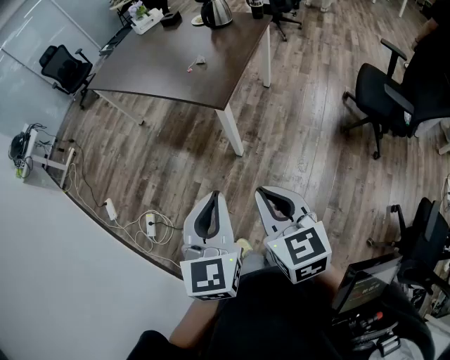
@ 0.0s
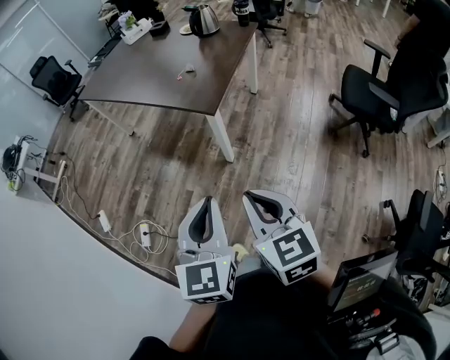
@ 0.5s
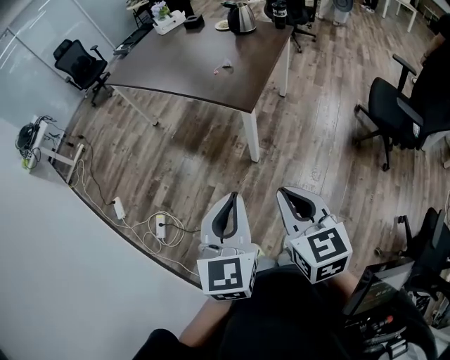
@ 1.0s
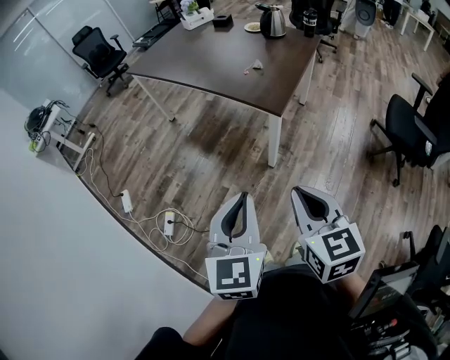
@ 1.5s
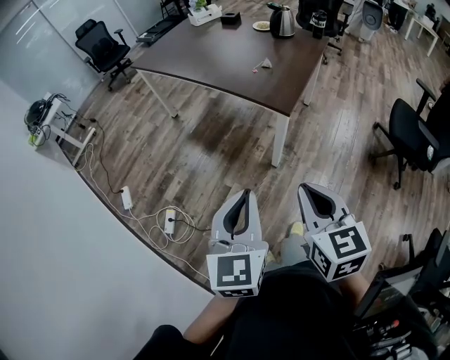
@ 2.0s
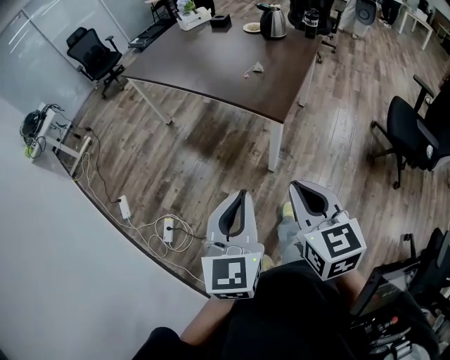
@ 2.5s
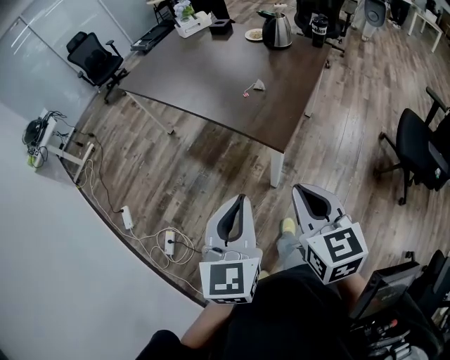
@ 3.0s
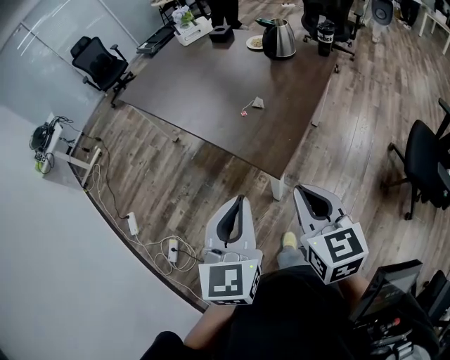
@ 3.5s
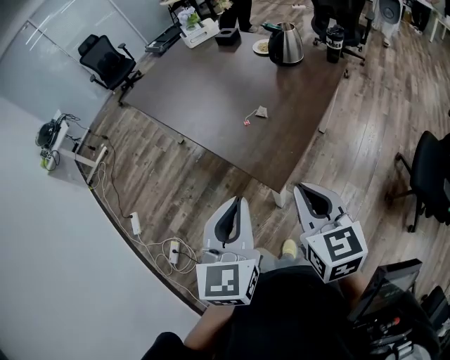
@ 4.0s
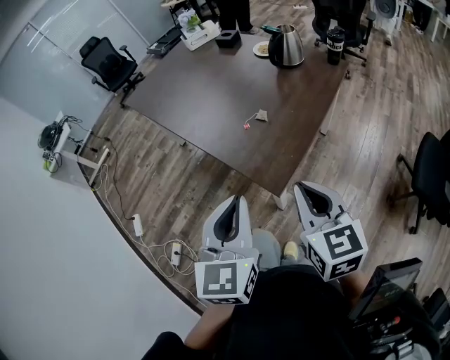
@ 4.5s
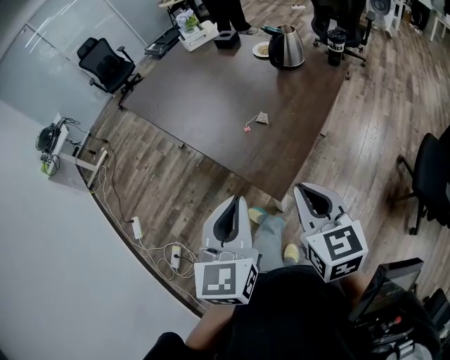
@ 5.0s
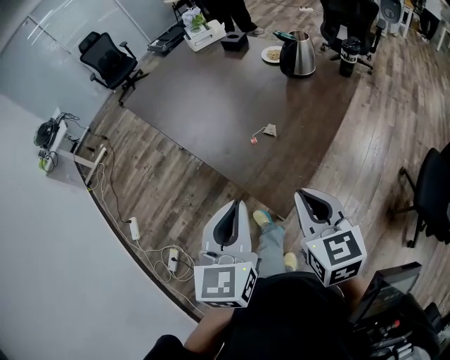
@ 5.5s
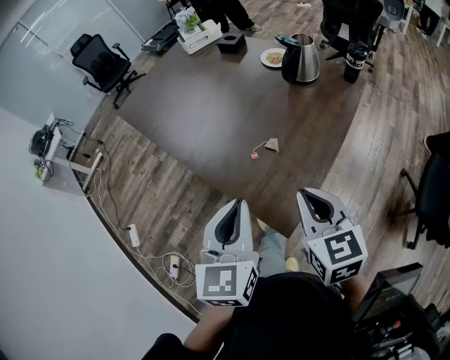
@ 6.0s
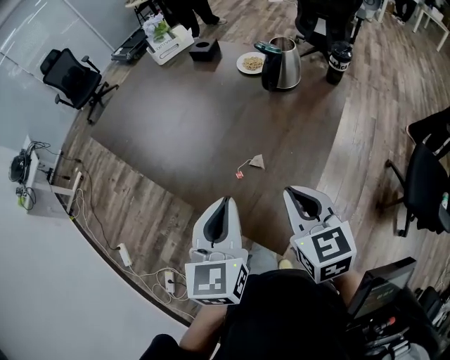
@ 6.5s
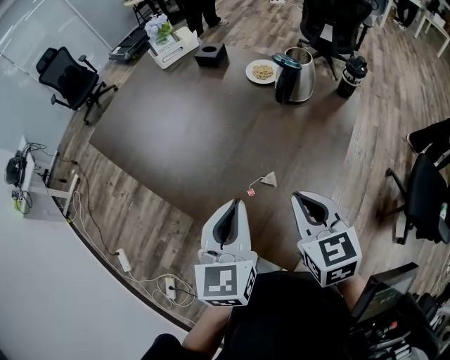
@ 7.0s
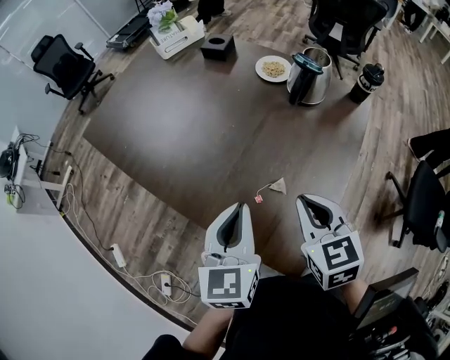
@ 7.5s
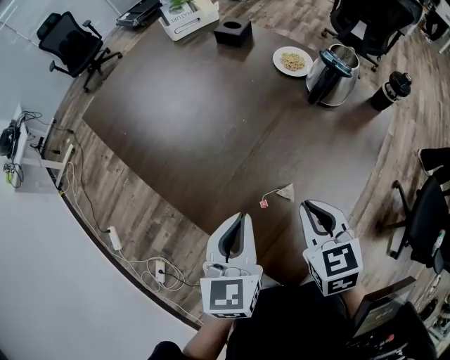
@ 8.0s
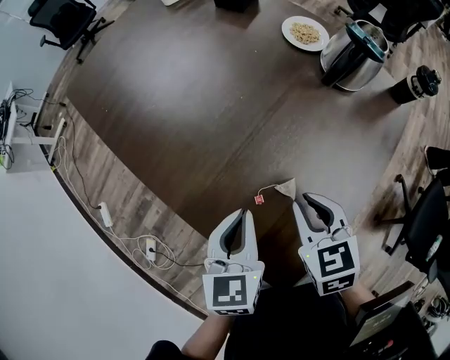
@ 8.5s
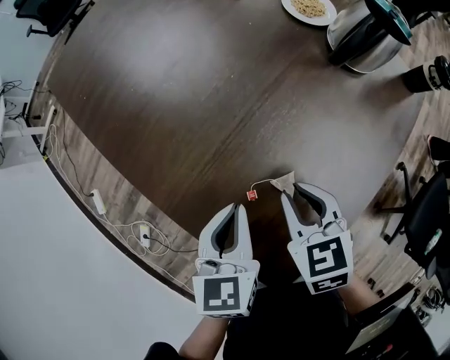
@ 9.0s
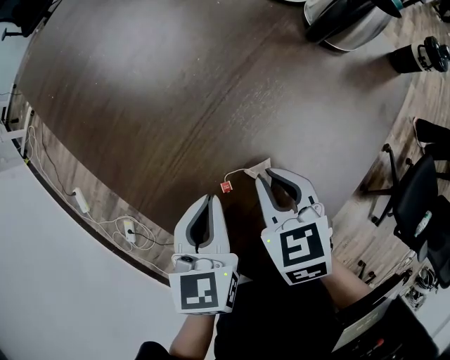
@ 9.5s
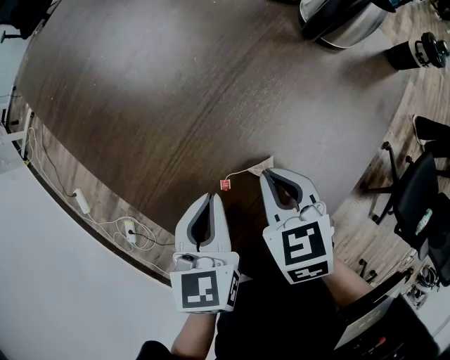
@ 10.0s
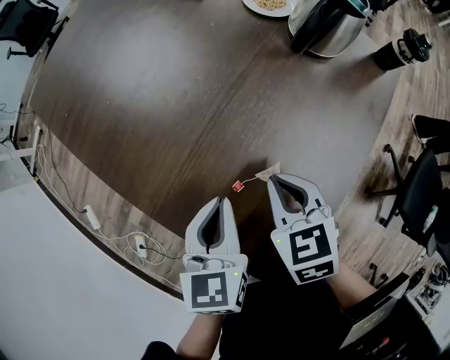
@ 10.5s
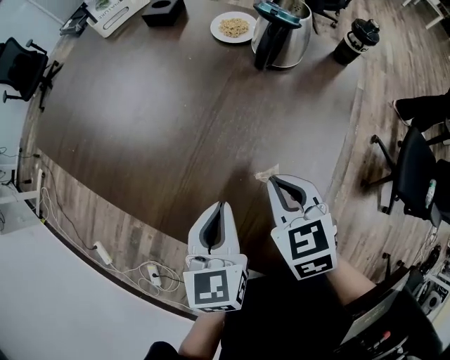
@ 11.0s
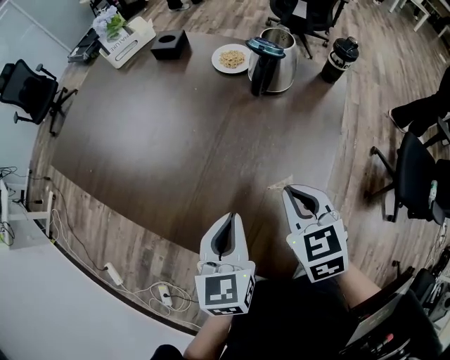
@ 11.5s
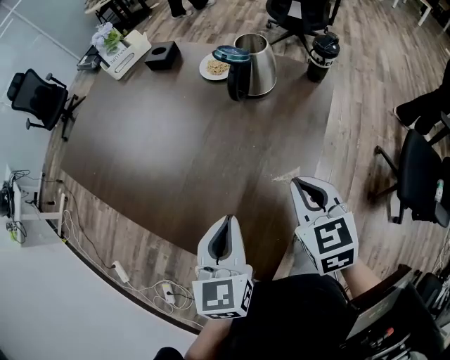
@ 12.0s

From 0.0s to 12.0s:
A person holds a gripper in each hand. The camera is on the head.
From 0.0s to 2.0s: The two grippers go some 15 cm to the left.
From 2.0s to 4.0s: The two grippers go some 35 cm forward and to the right.
From 4.0s to 6.0s: Both grippers travel together forward, some 15 cm.
From 6.0s to 8.0s: The grippers both shift forward and downward by roughly 20 cm.
From 8.0s to 10.0s: Both grippers travel together downward, some 15 cm.
From 10.0s to 12.0s: Both grippers move upward and to the right, approximately 20 cm. The left gripper swivels some 20 degrees. The right gripper rotates about 20 degrees.

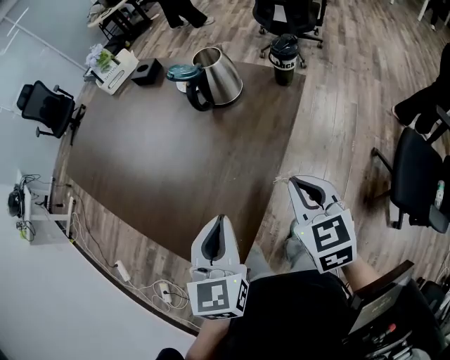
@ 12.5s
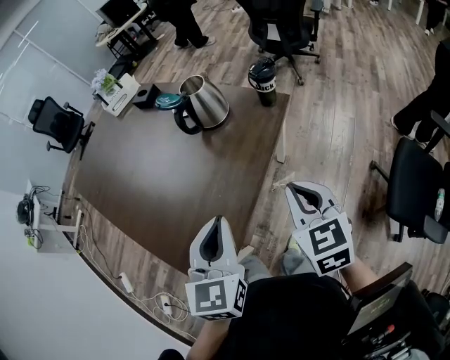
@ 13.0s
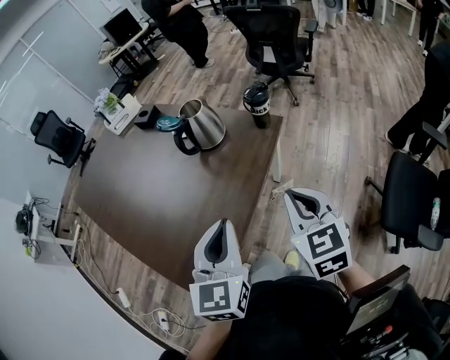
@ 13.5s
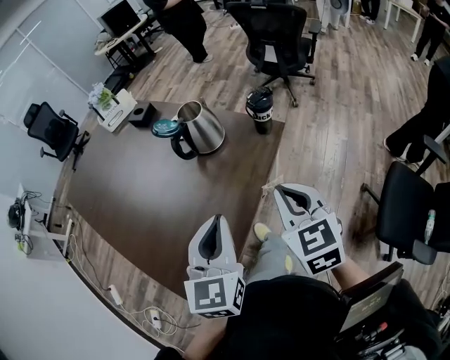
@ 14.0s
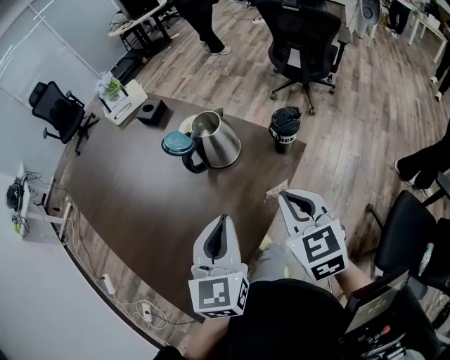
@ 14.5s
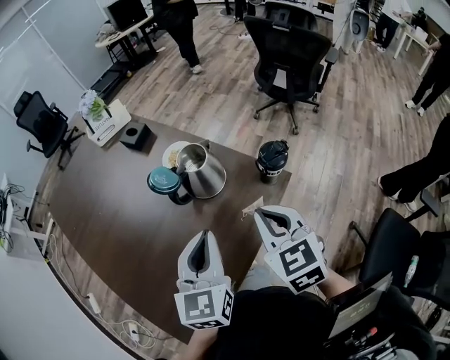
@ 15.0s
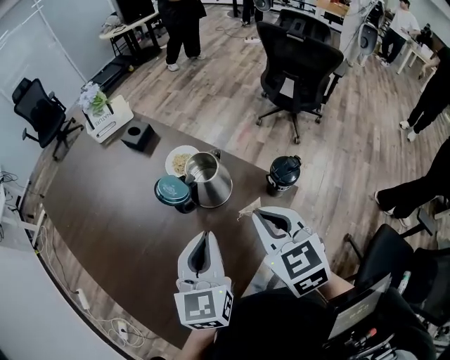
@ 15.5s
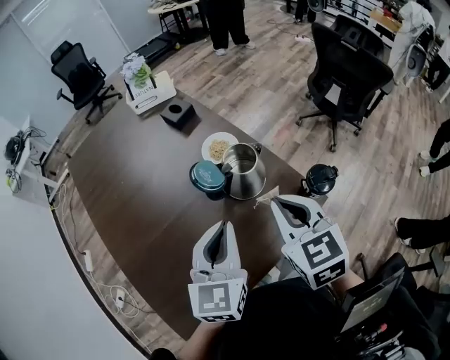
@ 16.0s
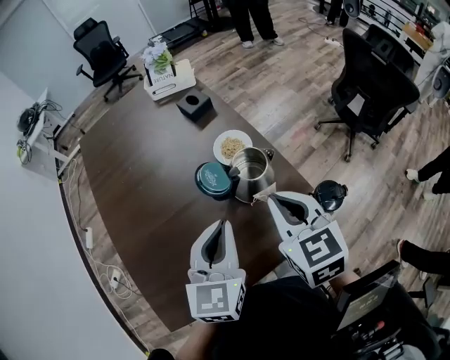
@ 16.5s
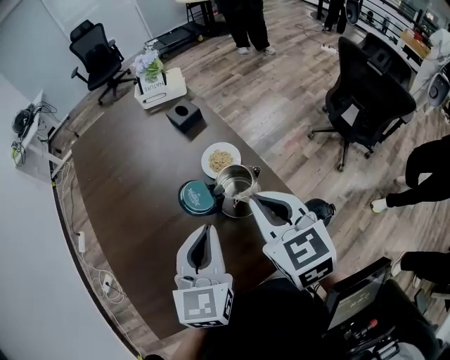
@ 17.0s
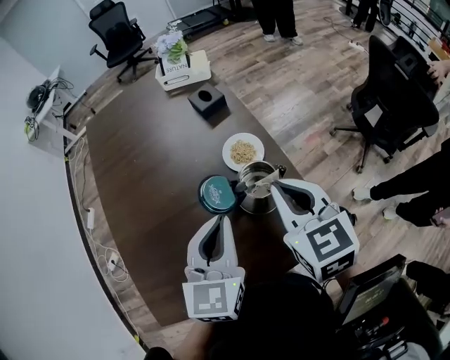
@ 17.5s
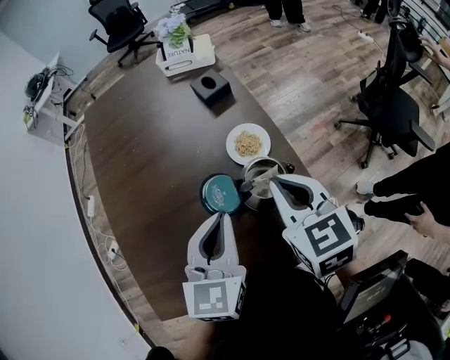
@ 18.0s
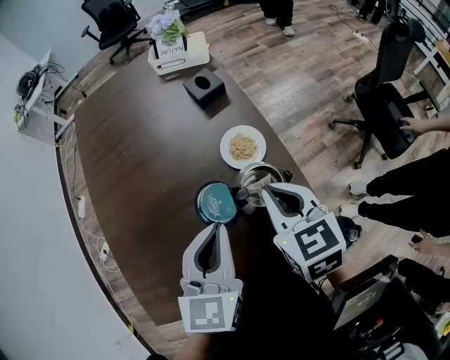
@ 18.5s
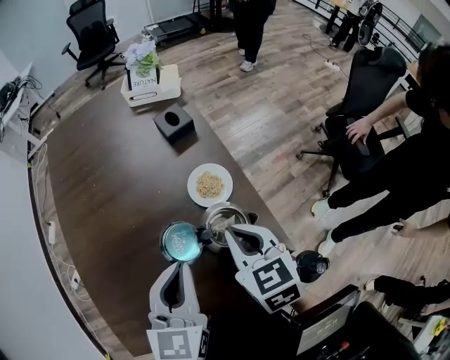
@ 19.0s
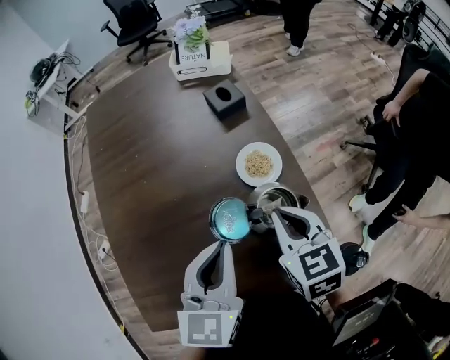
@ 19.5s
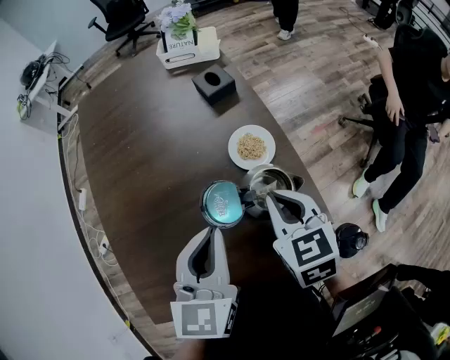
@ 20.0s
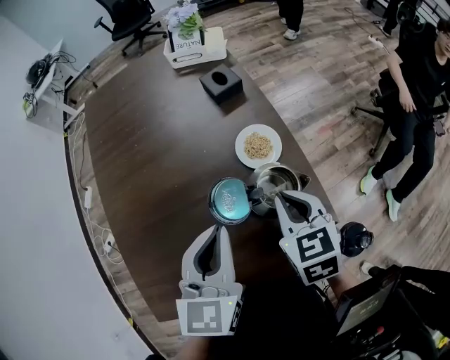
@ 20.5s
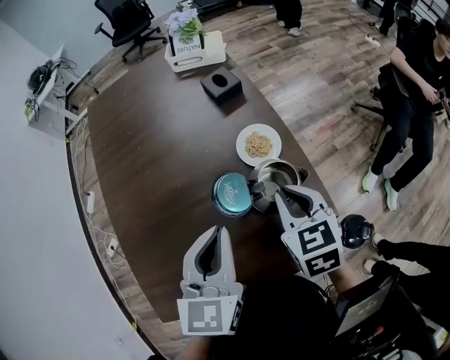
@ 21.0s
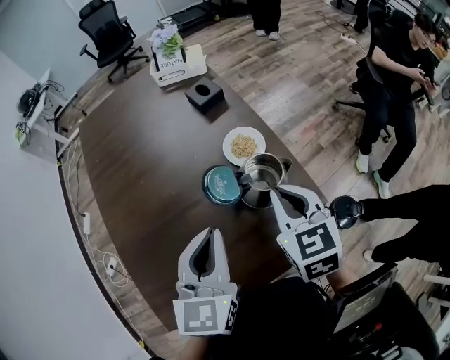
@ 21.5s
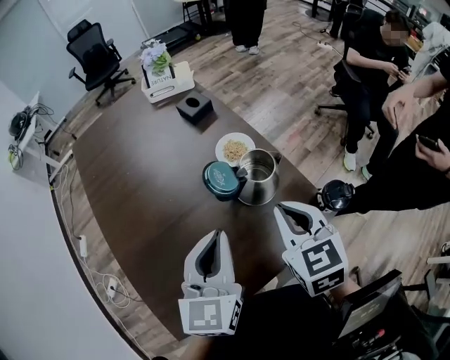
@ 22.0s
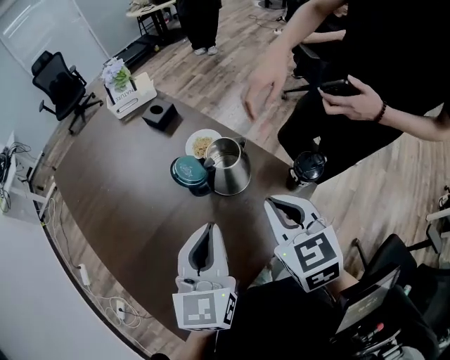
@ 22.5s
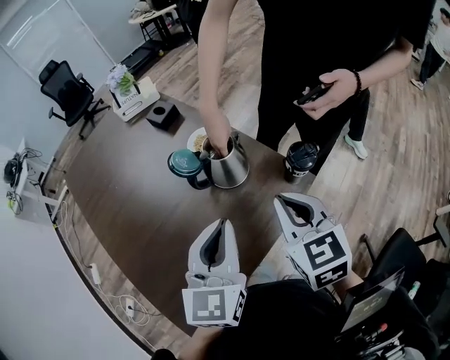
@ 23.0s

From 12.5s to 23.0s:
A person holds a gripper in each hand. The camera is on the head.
From 12.5s to 14.5s: The two grippers go approximately 20 cm forward and to the right.
From 14.5s to 16.5s: The grippers both shift forward by approximately 15 cm. The left gripper rotates about 20 degrees; the right gripper changes its angle by roughly 30 degrees.
From 16.5s to 19.0s: The left gripper moves forward, about 10 cm; the right gripper heads forward and downward, covering some 15 cm.
From 19.0s to 21.0s: There are only small adjustments of the grippers.
From 21.0s to 23.0s: The right gripper moves some 20 cm, and rotates some 30 degrees; the left gripper ends up approximately 15 cm from where it was, and turns by roughly 30 degrees.

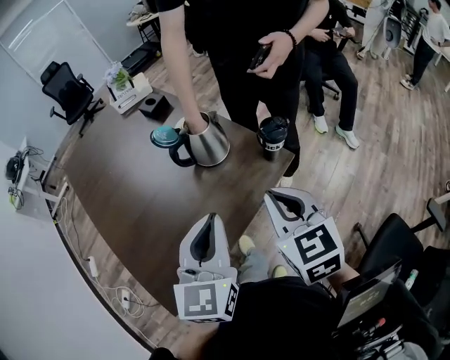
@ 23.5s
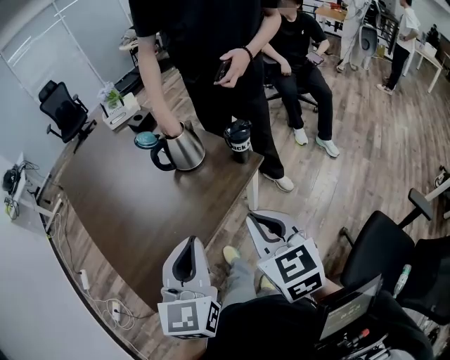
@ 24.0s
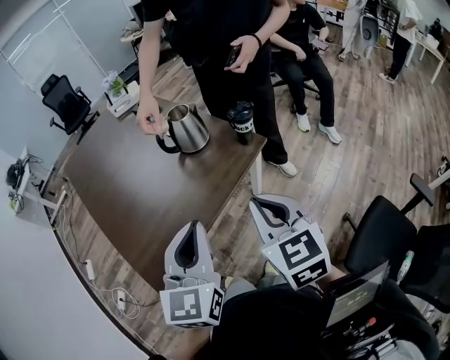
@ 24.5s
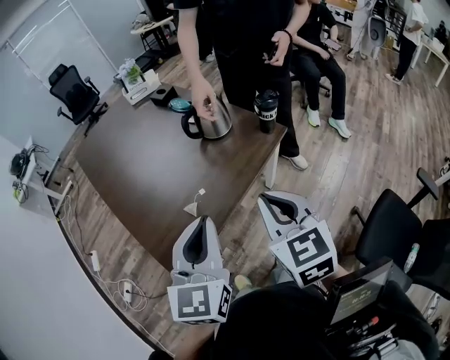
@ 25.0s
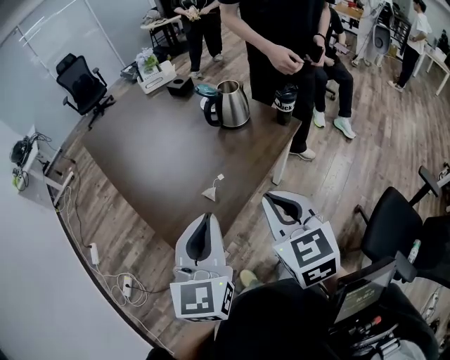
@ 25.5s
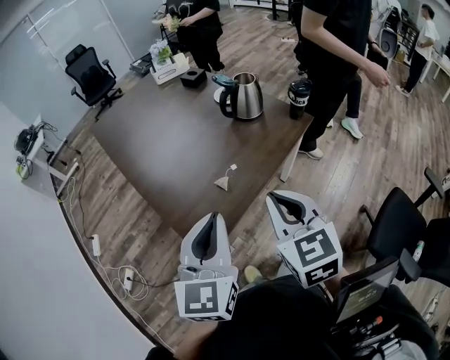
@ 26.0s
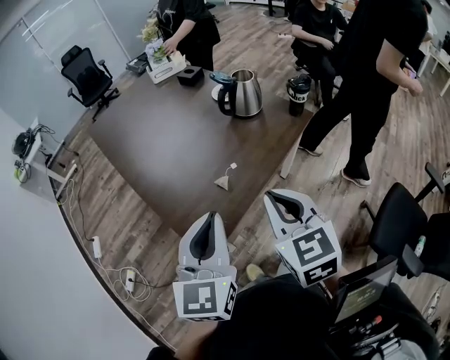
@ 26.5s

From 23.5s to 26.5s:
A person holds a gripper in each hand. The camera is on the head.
From 23.5s to 25.0s: The two grippers go some 20 cm backward and to the left.
From 25.0s to 26.5s: The two grippers go about 15 cm to the left and backward.

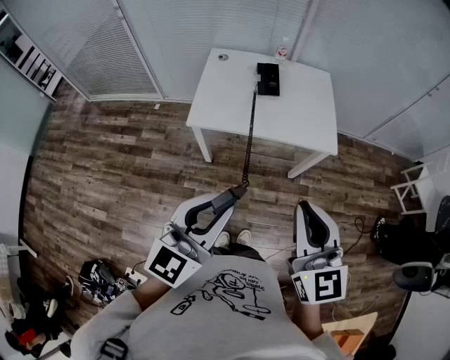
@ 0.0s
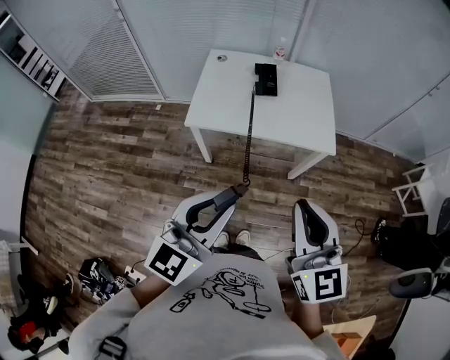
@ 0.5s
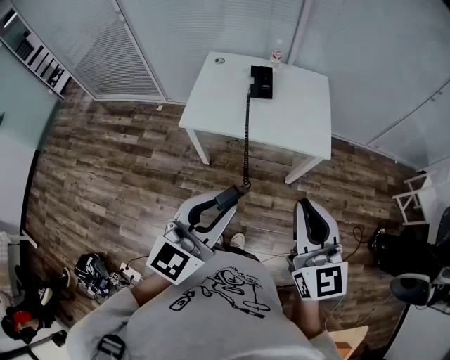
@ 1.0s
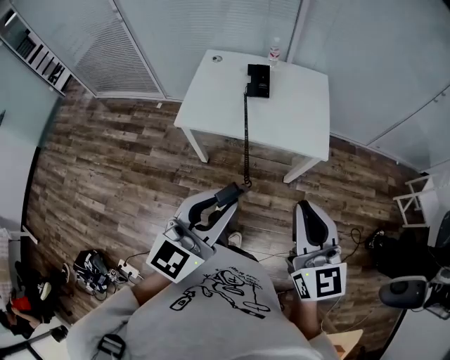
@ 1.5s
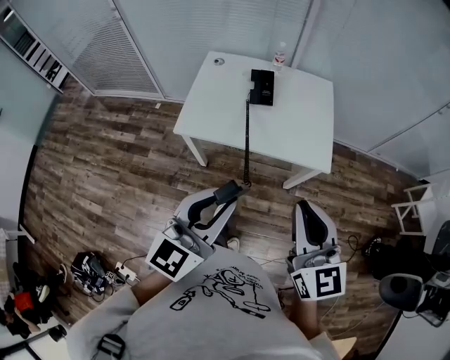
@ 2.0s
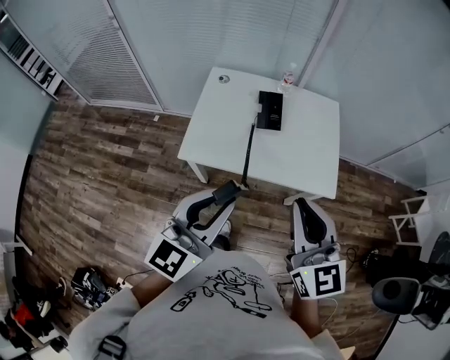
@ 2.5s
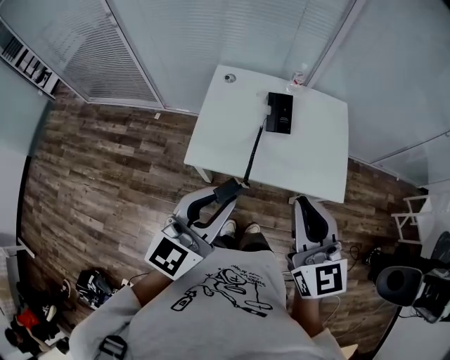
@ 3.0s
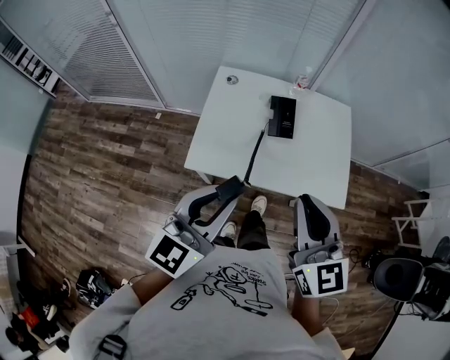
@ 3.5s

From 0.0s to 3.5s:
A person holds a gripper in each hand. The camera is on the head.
From 0.0s to 2.0s: Both grippers travel together forward and to the right, about 15 cm.
From 2.0s to 3.5s: The two grippers go approximately 25 cm forward and to the left.
